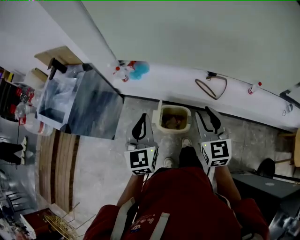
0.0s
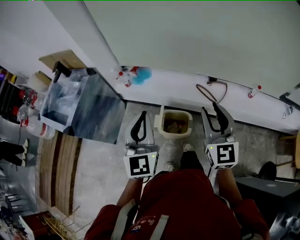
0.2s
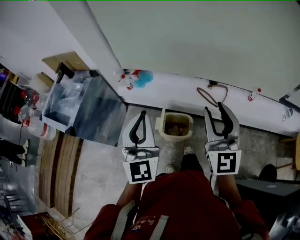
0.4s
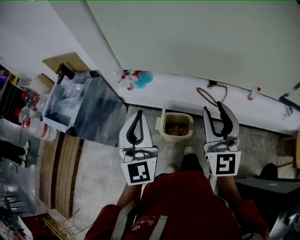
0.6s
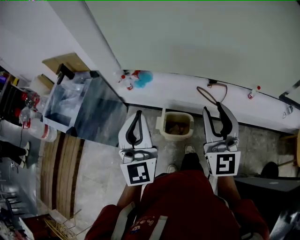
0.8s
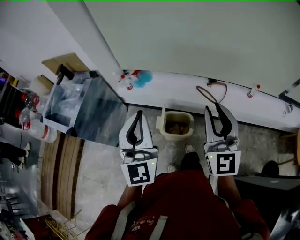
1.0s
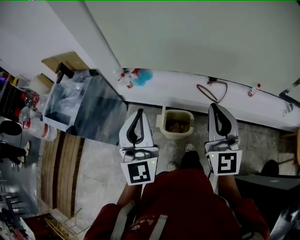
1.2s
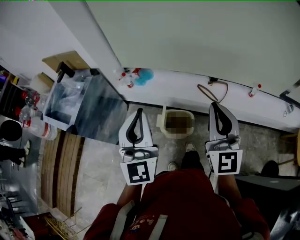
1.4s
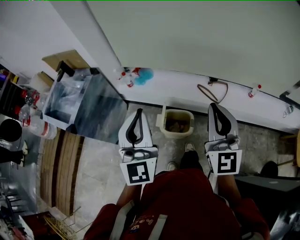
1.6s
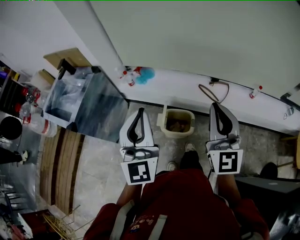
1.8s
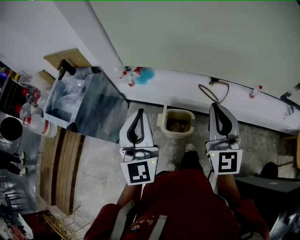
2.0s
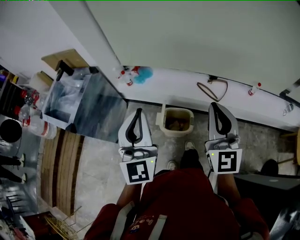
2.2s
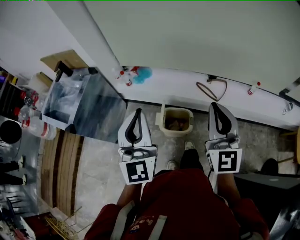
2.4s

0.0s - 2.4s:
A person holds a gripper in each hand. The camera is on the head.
0.0s - 1.2s: Both grippers move upward, about 15 cm. The left gripper turns by some 30 degrees; the right gripper turns by roughly 20 degrees, and closes its fingers.
1.2s - 2.4s: Neither gripper changes place.

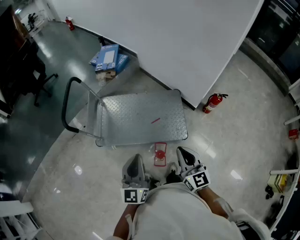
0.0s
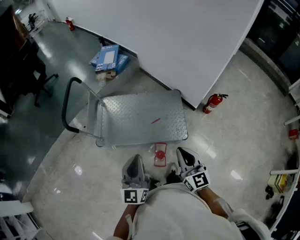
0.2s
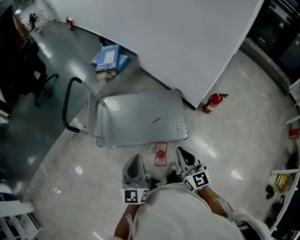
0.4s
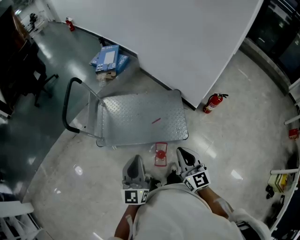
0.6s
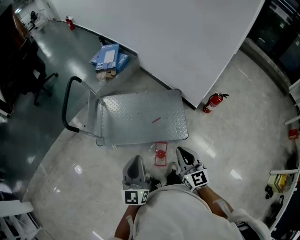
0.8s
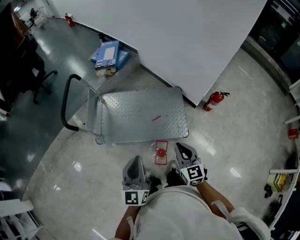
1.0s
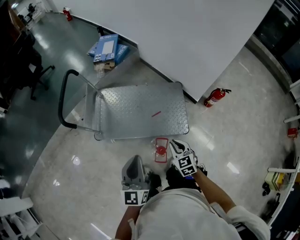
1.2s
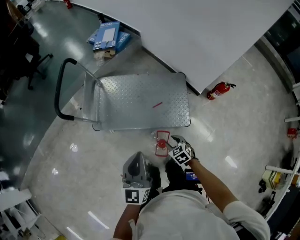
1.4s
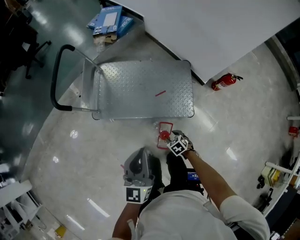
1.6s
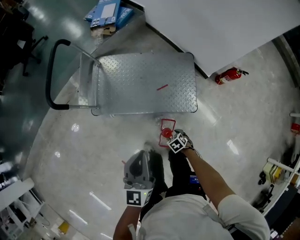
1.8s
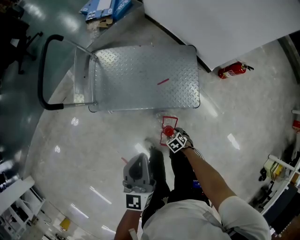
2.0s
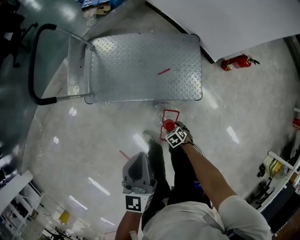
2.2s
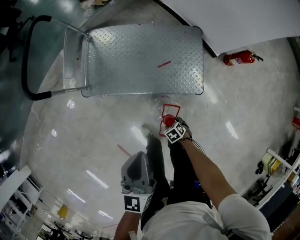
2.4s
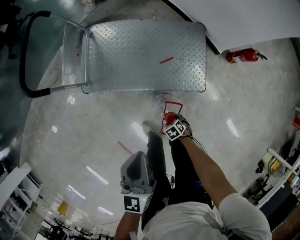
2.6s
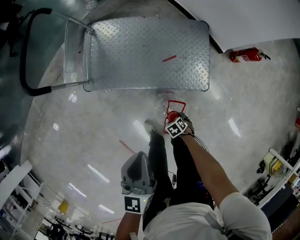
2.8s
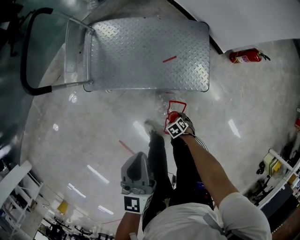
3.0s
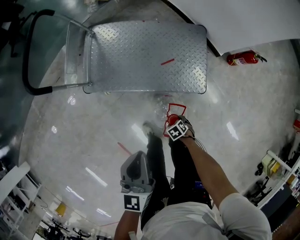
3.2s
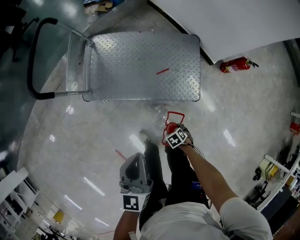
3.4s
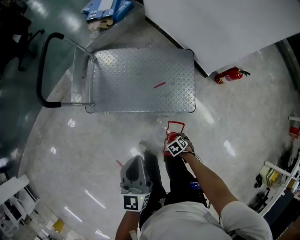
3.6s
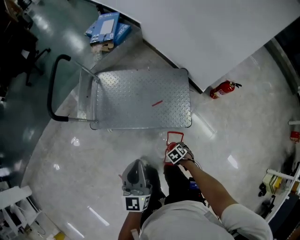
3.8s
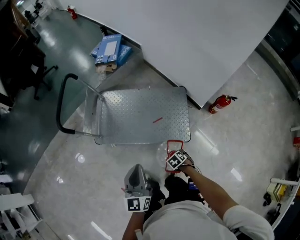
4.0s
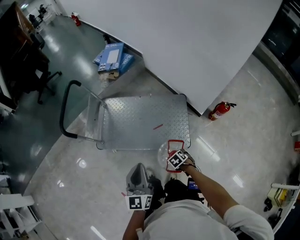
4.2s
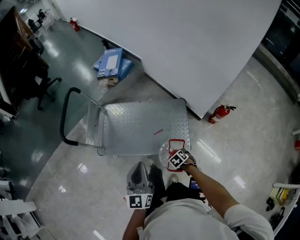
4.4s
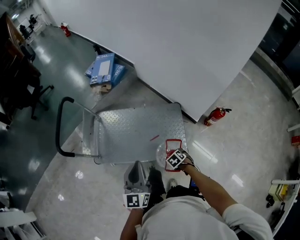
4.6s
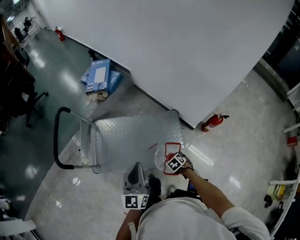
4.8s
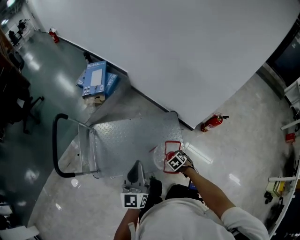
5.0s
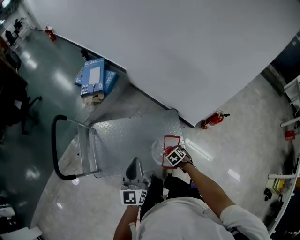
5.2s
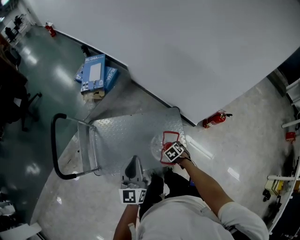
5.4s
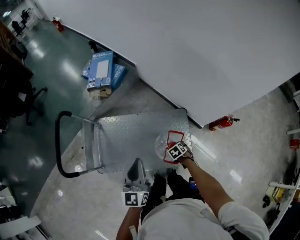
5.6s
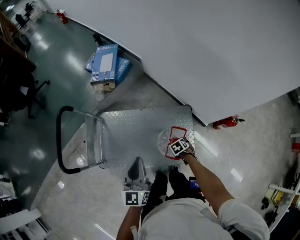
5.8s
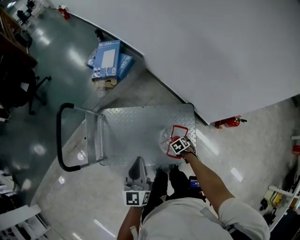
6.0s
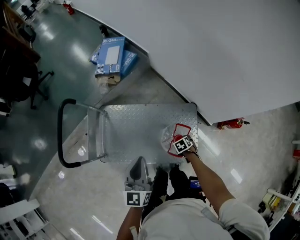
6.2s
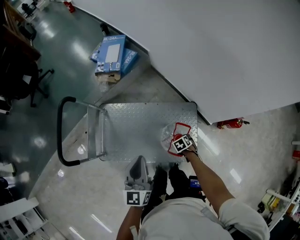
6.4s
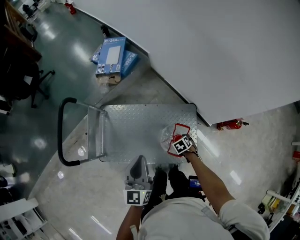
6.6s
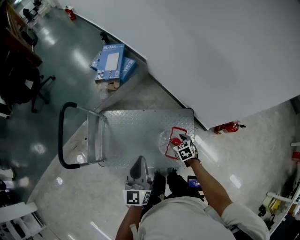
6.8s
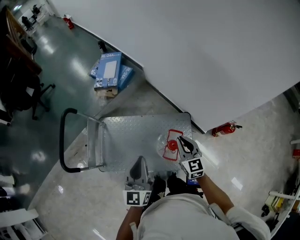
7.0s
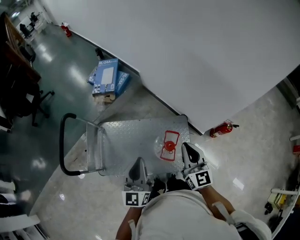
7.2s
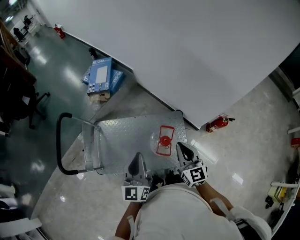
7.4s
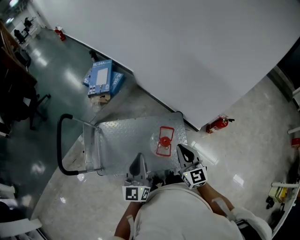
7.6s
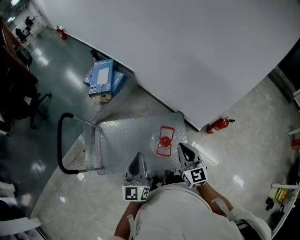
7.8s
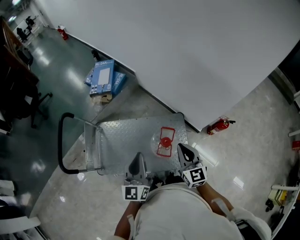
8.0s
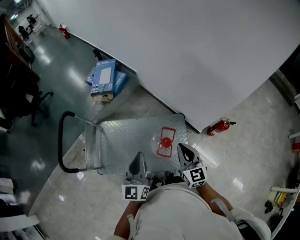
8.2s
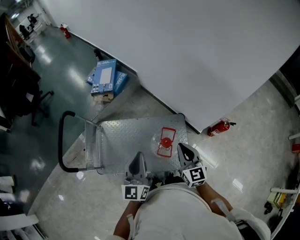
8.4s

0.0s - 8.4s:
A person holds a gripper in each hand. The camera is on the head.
0.0s - 1.4s: The right gripper shifts about 30 cm downward, tips its fingers downward by some 50 degrees, and opens.
1.4s - 2.8s: The left gripper goes about 15 cm downward. Meanwhile the right gripper travels downward by some 35 cm, changes its angle by some 30 degrees, and opens its fingers.
2.8s - 4.2s: The left gripper heads upward, covering approximately 15 cm. The right gripper goes approximately 25 cm upward.
4.2s - 5.6s: The left gripper shifts by about 30 cm, while the right gripper shifts by approximately 30 cm.
5.6s - 7.0s: The right gripper moves upward, approximately 30 cm, angles its fingers upward, by roughly 60 degrees, and closes up.
7.0s - 8.4s: The right gripper is displaced backward and upward by approximately 10 cm.

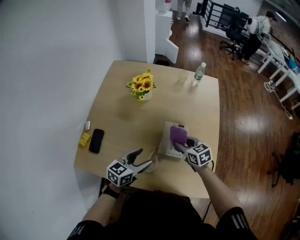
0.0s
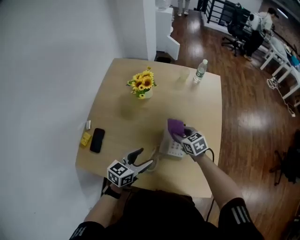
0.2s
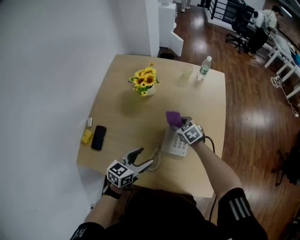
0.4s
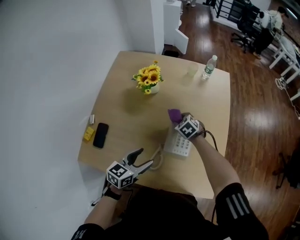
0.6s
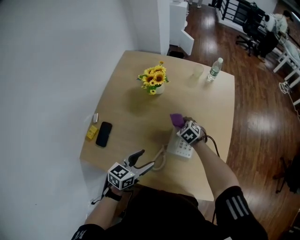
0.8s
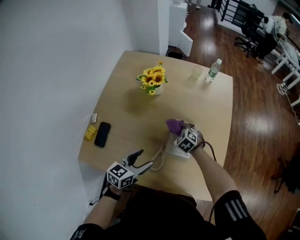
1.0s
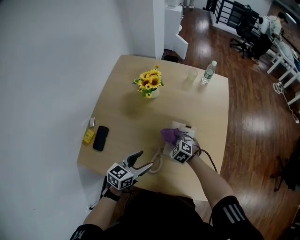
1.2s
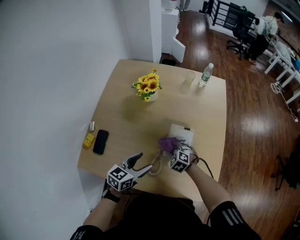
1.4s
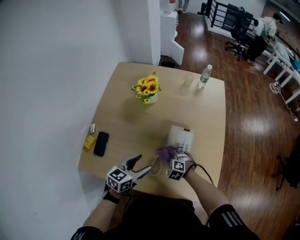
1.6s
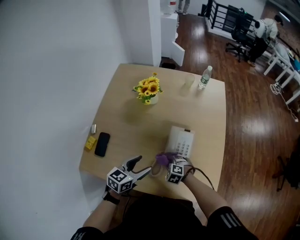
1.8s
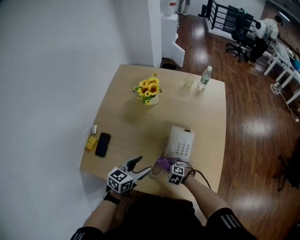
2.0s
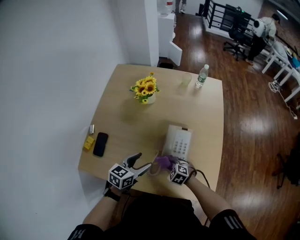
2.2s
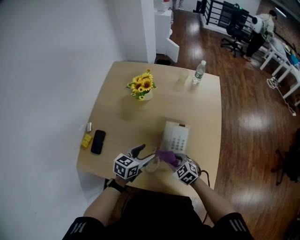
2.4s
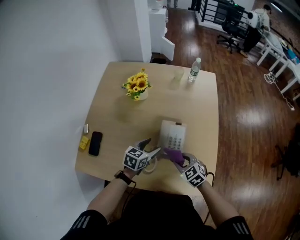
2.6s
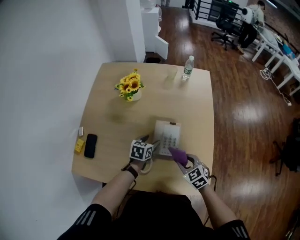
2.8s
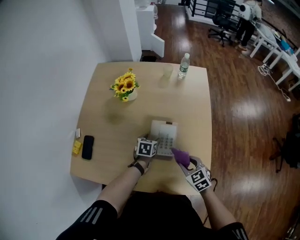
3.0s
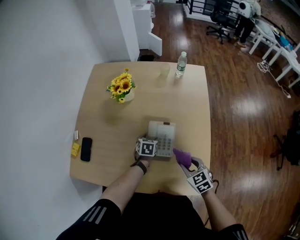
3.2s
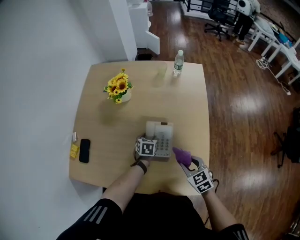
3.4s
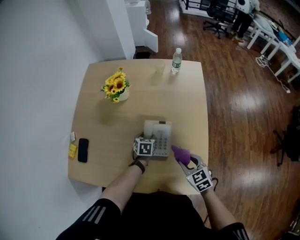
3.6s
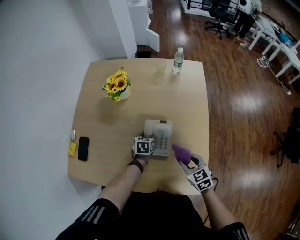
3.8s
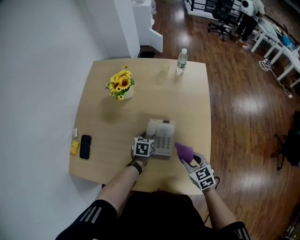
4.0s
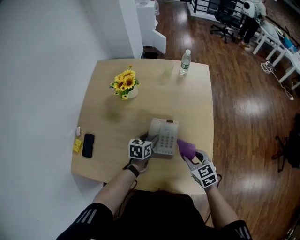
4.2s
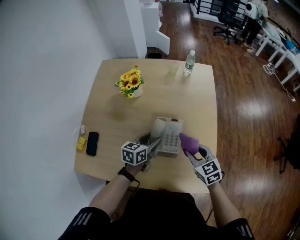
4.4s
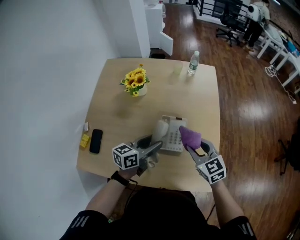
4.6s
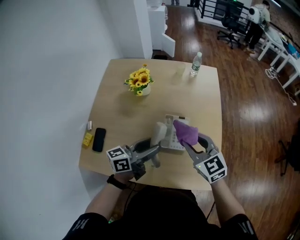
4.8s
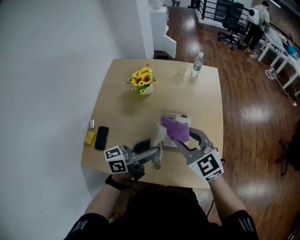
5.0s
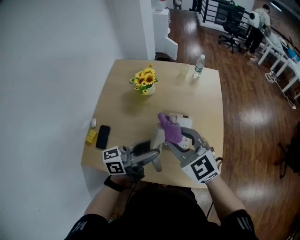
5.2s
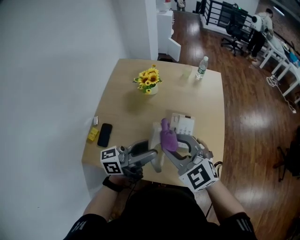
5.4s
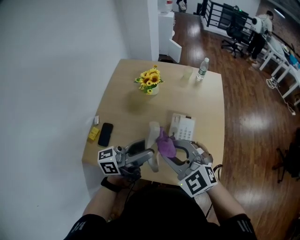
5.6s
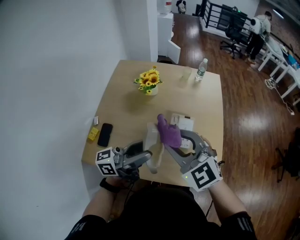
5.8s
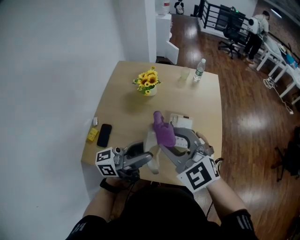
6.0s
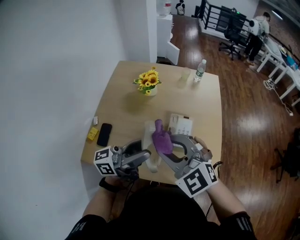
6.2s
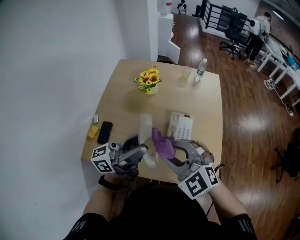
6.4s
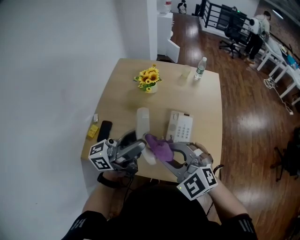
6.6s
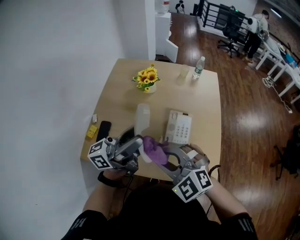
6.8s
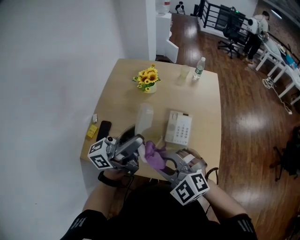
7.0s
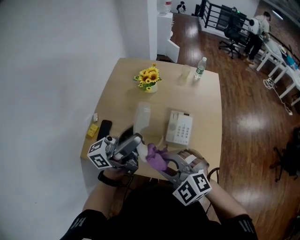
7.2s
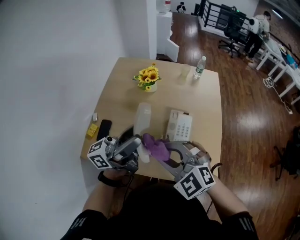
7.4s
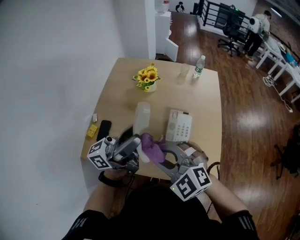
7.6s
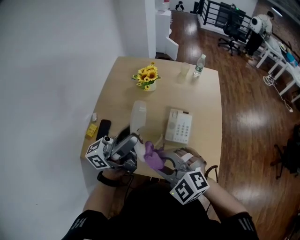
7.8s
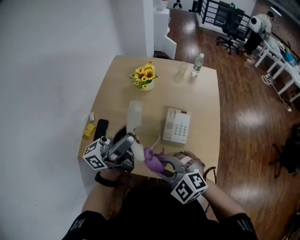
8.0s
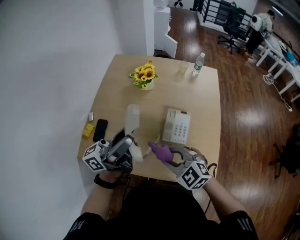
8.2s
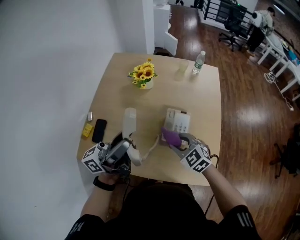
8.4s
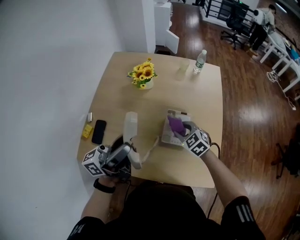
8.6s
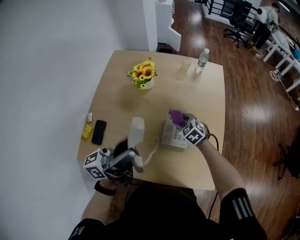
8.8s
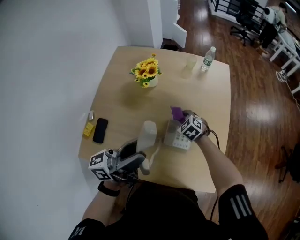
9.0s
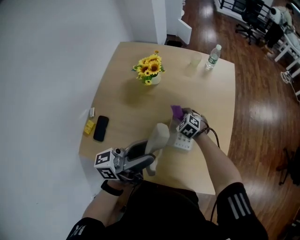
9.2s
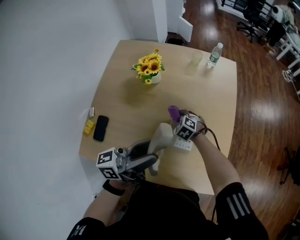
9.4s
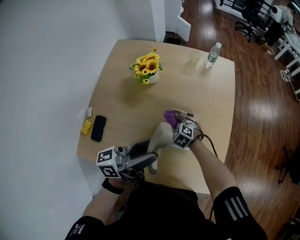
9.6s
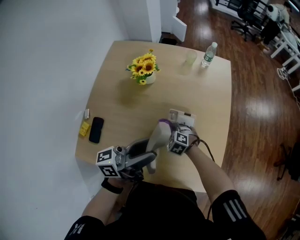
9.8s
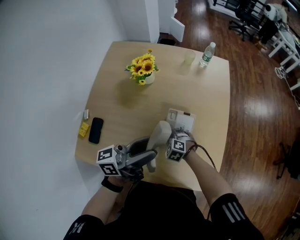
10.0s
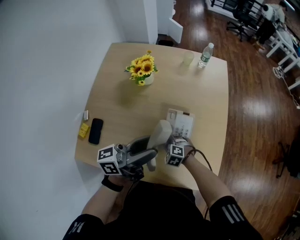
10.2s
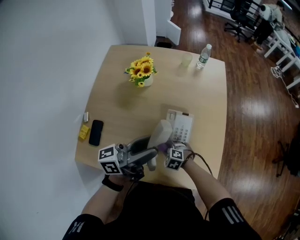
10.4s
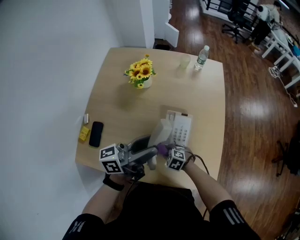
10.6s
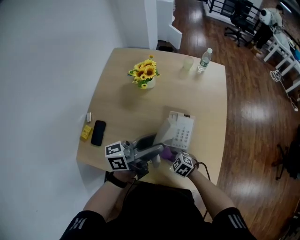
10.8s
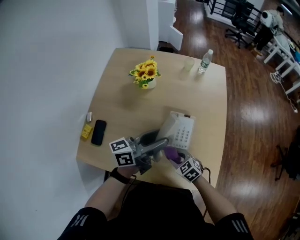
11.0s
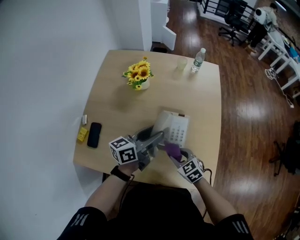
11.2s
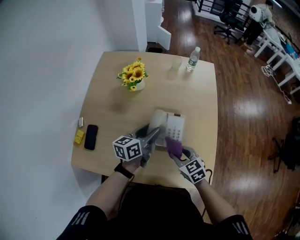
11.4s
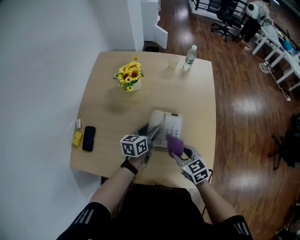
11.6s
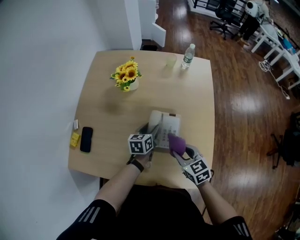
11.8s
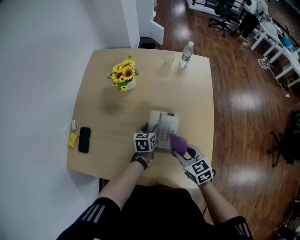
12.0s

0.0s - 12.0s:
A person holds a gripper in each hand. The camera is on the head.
0.0s - 1.6s: The right gripper goes roughly 15 cm downward and to the left, travels forward and back again, approximately 10 cm each way, and twists some 50 degrees counterclockwise, seen from behind.
1.6s - 3.0s: The left gripper heads downward, forward and to the right, covering about 25 cm, and swivels about 30 degrees. Meanwhile the right gripper heads to the right and upward, covering some 20 cm, and swivels approximately 40 degrees.
3.0s - 4.4s: The right gripper heads upward, covering about 5 cm, while the left gripper heads upward, covering some 10 cm, and turns by roughly 30 degrees.
4.4s - 6.0s: The right gripper moves upward and to the left, some 35 cm, and rotates approximately 40 degrees. Meanwhile the left gripper shifts roughly 30 cm upward and backward, and points its fingers roughly 50 degrees further upward.
6.0s - 7.6s: The left gripper is displaced upward by some 5 cm. Meanwhile the right gripper travels backward and downward by approximately 10 cm.
7.6s - 9.0s: The right gripper shifts some 40 cm downward, forward and to the right, and turns by approximately 40 degrees, while the left gripper moves downward, about 10 cm.
9.0s - 10.4s: The left gripper changes place by approximately 5 cm, while the right gripper is displaced backward and downward by some 20 cm.
10.4s - 12.0s: The left gripper moves downward, about 30 cm, and angles its fingers downward, by some 60 degrees, while the right gripper heads upward, covering approximately 20 cm, and rolls clockwise, seen from behind, by some 40 degrees.
